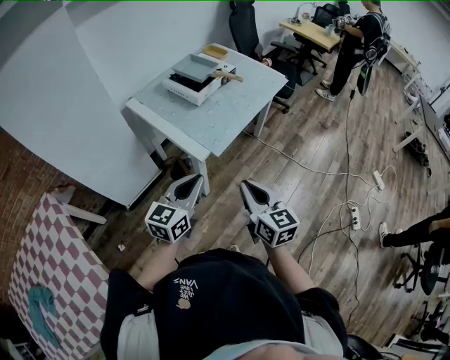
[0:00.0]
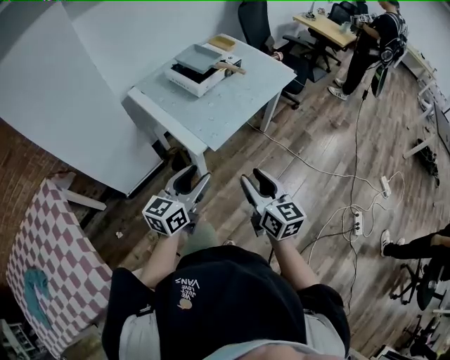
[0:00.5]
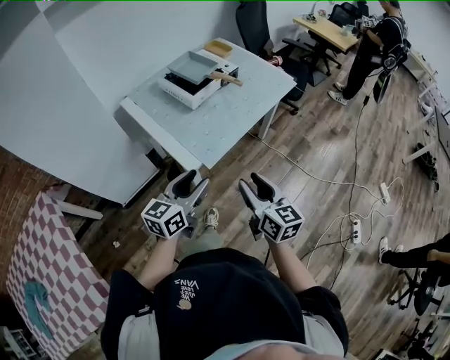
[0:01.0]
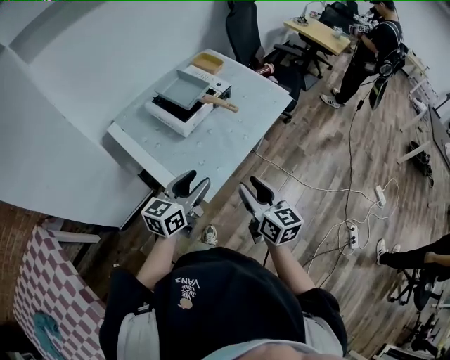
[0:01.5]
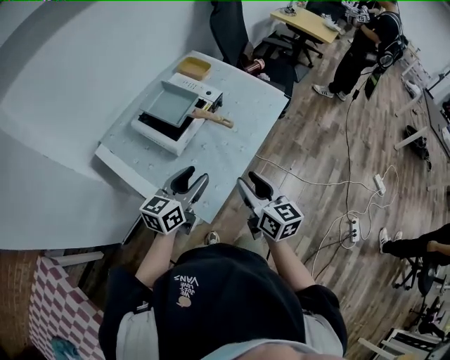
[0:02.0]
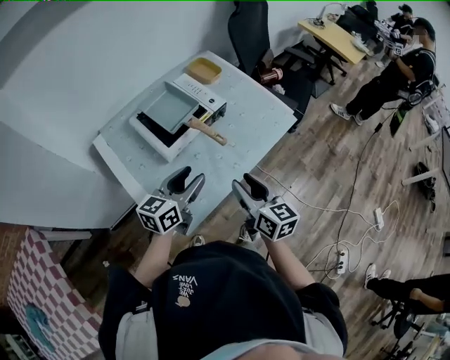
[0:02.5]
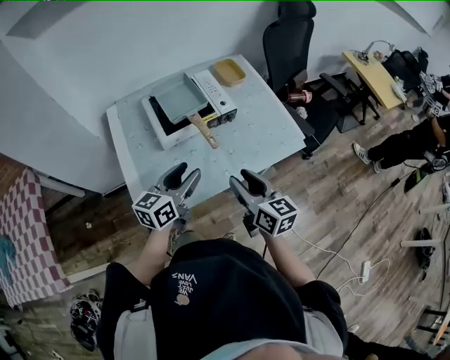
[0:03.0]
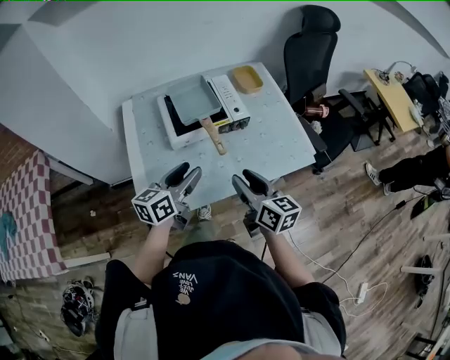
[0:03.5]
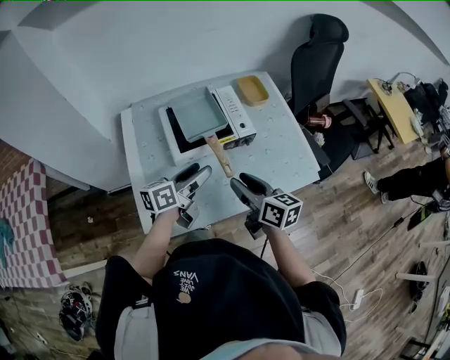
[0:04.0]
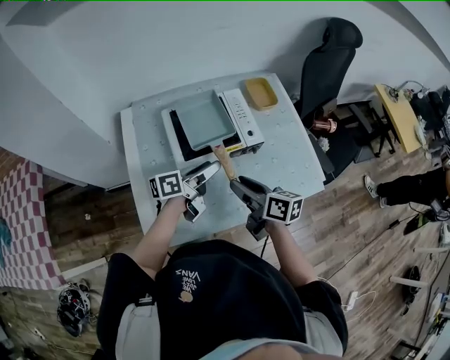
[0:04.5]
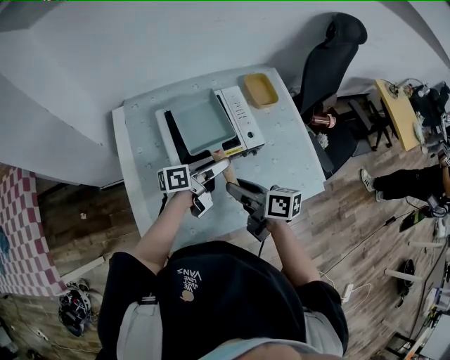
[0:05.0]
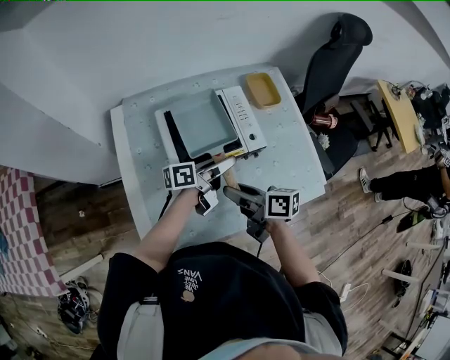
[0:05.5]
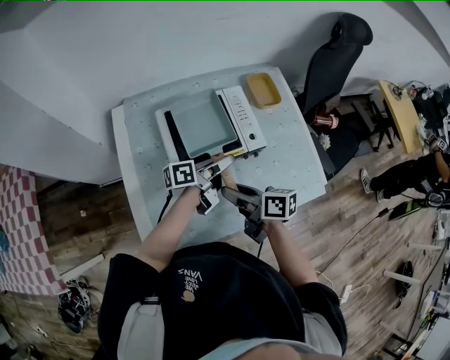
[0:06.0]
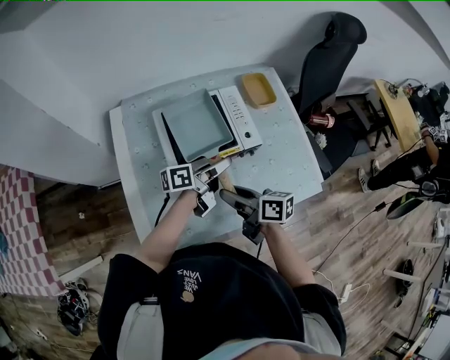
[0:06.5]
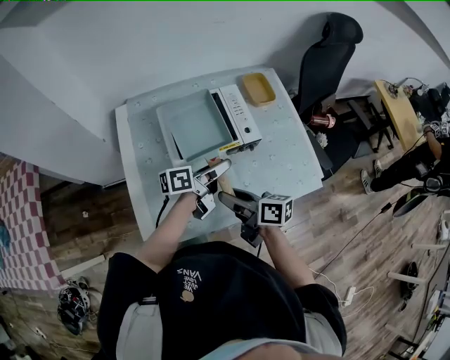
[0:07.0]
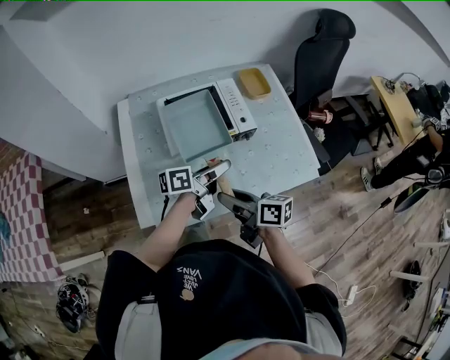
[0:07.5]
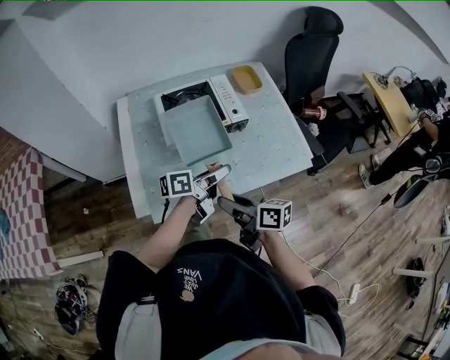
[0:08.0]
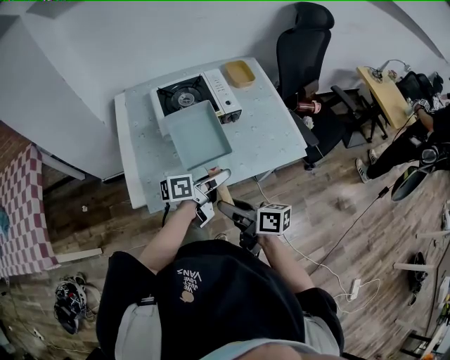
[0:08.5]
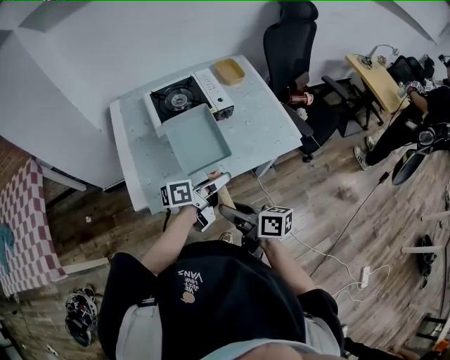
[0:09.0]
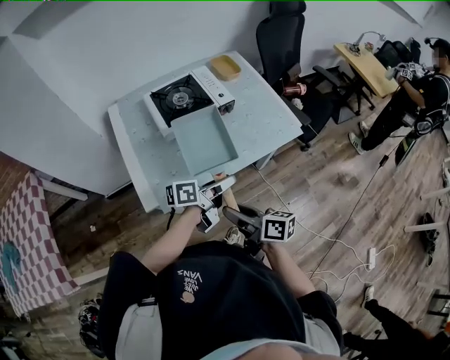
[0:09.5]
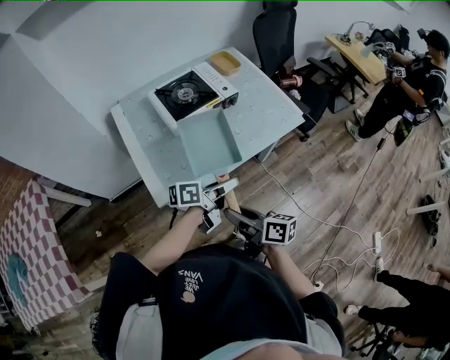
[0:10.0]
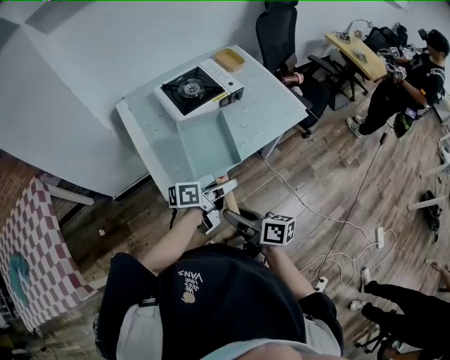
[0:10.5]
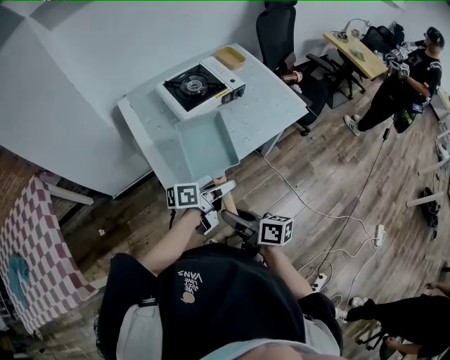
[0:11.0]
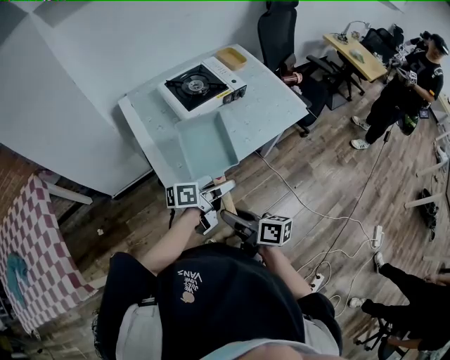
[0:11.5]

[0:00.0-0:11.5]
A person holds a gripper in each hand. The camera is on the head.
0:00.0 to 0:02.0: Both grippers travel together forward, roughly 30 cm. The left gripper opens up. The right gripper opens.
0:02.0 to 0:04.0: The right gripper changes place by some 20 cm, and rotates about 50 degrees. Meanwhile the left gripper changes place by roughly 15 cm, and swivels approximately 40 degrees.
0:04.0 to 0:06.0: The right gripper heads forward and to the left, covering about 10 cm, and swivels about 30 degrees. The left gripper heads forward, downward and to the right, covering some 15 cm, and turns by about 30 degrees.
0:06.0 to 0:07.5: Both grippers travel together backward, some 10 cm.
0:07.5 to 0:09.5: The two grippers go approximately 20 cm backward.
0:09.5 to 0:11.5: The left gripper travels backward and to the left by some 15 cm; the right gripper is displaced to the left and backward by about 15 cm.

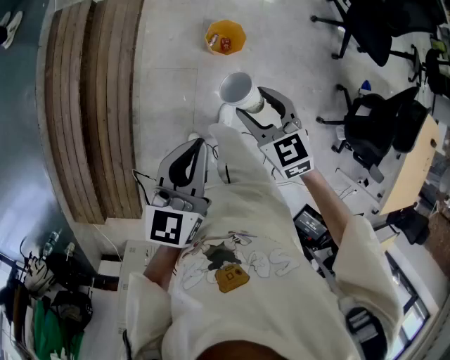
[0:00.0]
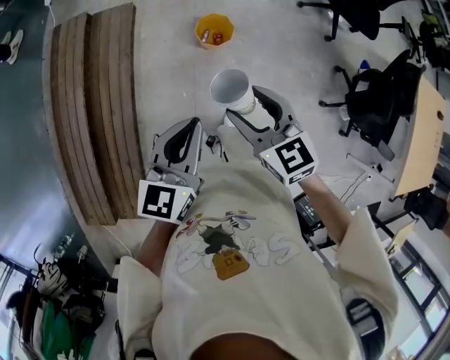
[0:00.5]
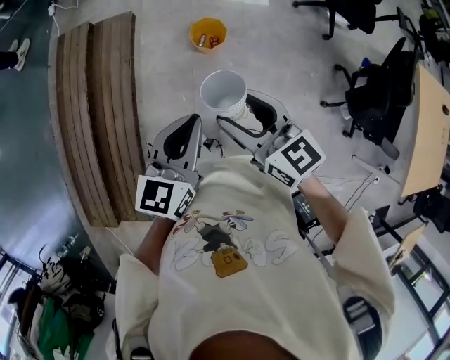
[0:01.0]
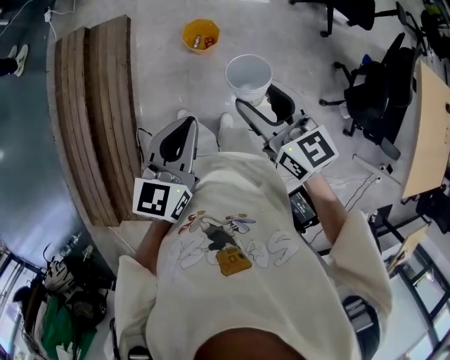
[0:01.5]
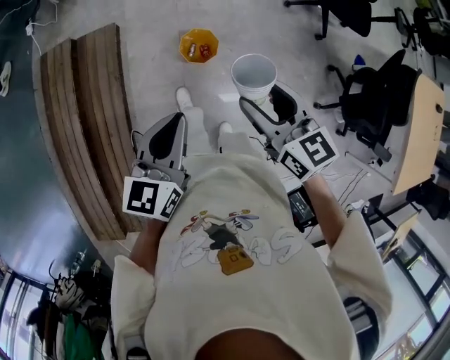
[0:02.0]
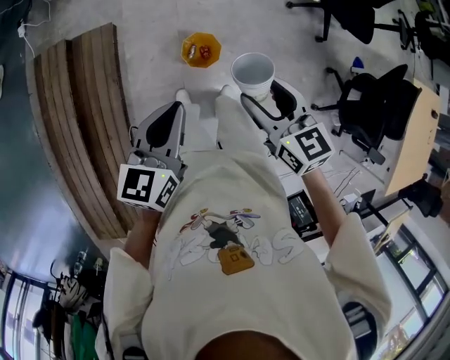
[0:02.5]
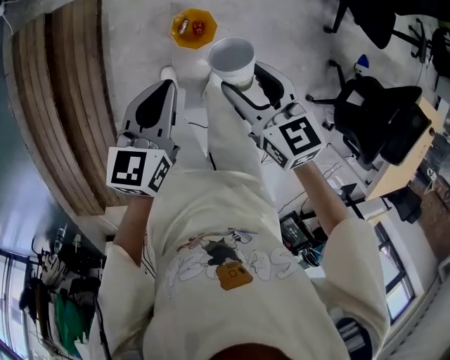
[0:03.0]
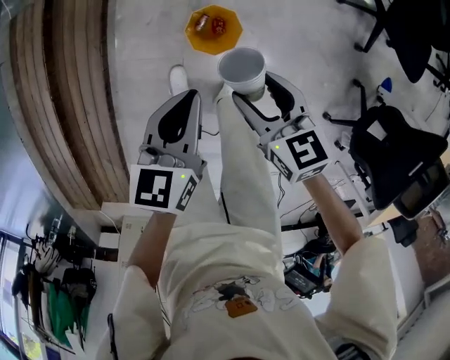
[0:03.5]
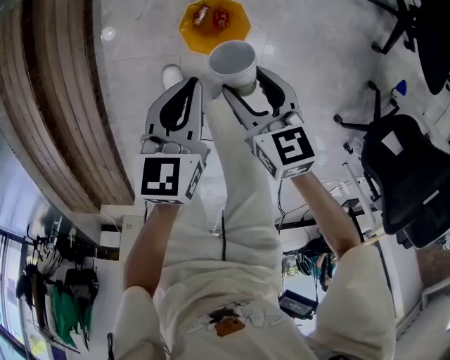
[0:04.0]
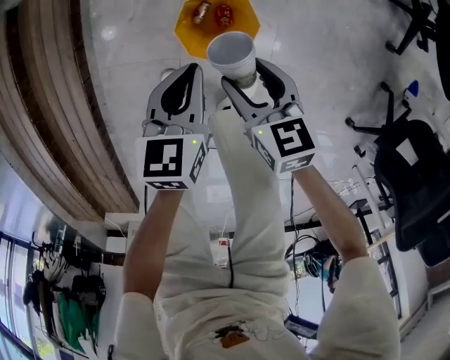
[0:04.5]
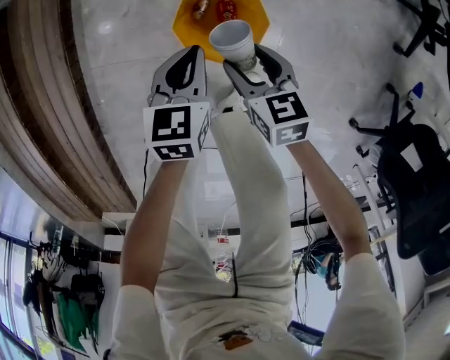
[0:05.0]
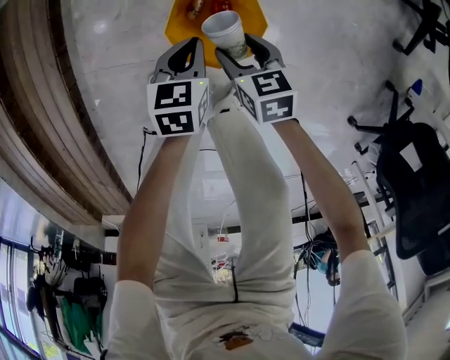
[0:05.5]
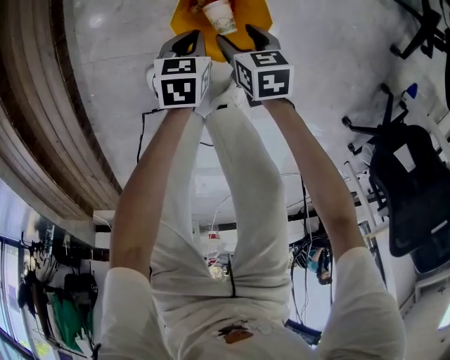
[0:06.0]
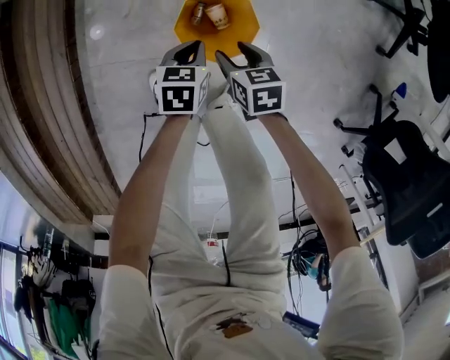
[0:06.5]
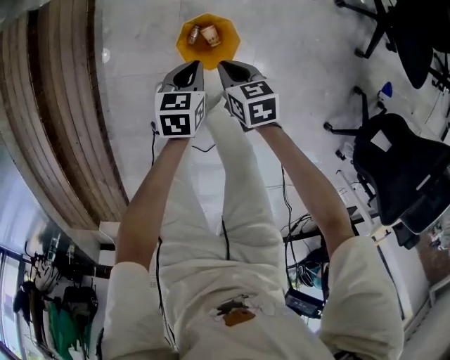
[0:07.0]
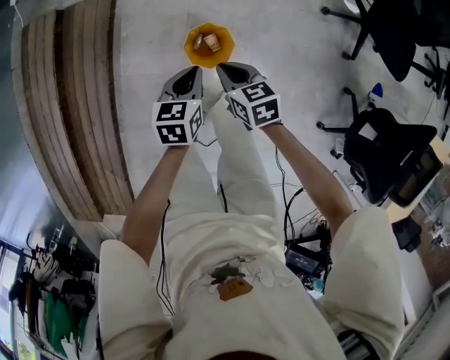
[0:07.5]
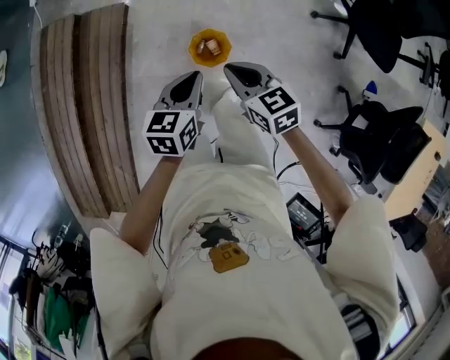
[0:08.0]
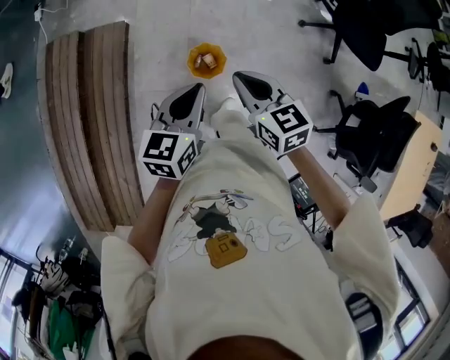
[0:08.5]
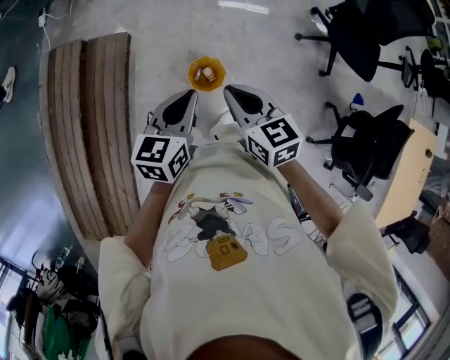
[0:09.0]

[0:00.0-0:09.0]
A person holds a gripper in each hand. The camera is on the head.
0:00.0 to 0:02.0: The left gripper heads to the right and forward, covering some 15 cm; the right gripper shifts some 20 cm to the right and upward, and rotates roughly 30 degrees.
0:02.0 to 0:04.5: The left gripper travels downward and forward by approximately 70 cm, and changes its angle by some 30 degrees. The right gripper travels downward by about 60 cm, and swivels approximately 30 degrees.
0:04.5 to 0:07.0: The left gripper reaches about 25 cm downward, then returns. The right gripper reaches roughly 20 cm downward, then returns, and closes its fingers.
0:07.0 to 0:09.0: The grippers both shift upward by some 50 cm. The left gripper changes its angle by some 20 degrees. Meanwhile the right gripper swivels about 30 degrees.

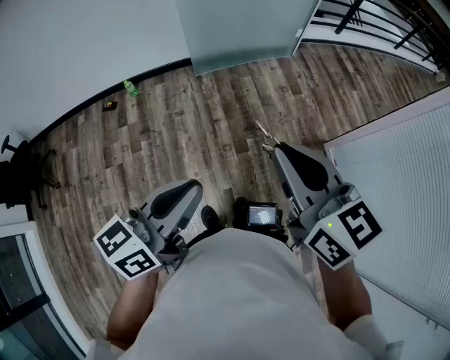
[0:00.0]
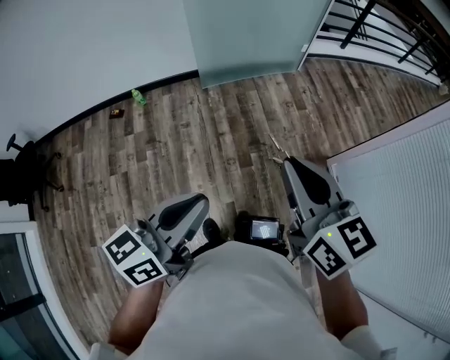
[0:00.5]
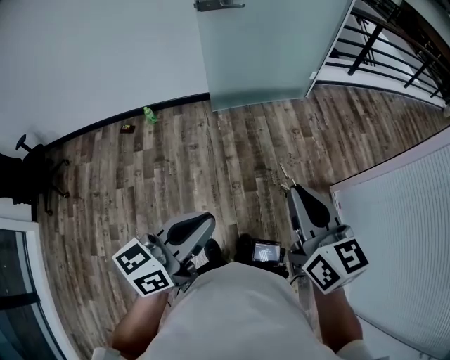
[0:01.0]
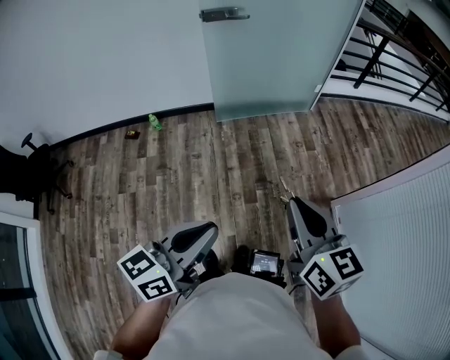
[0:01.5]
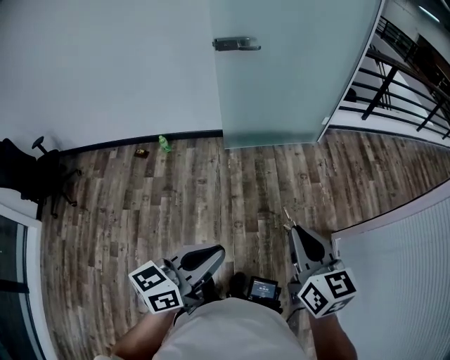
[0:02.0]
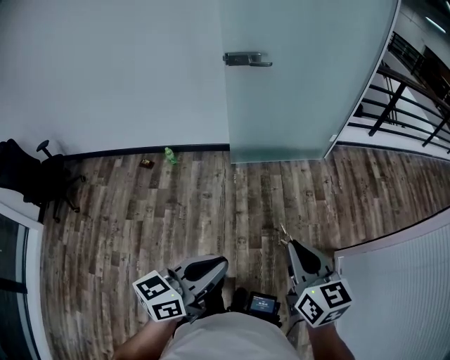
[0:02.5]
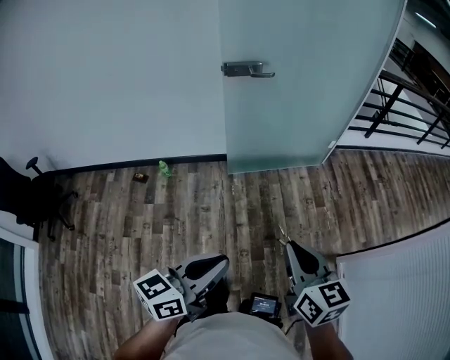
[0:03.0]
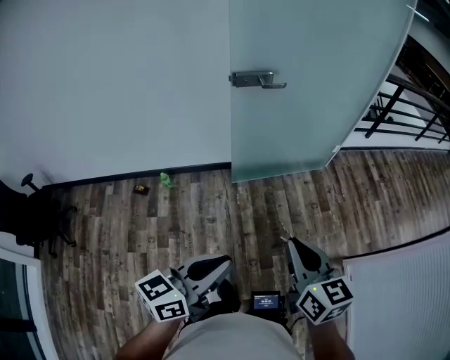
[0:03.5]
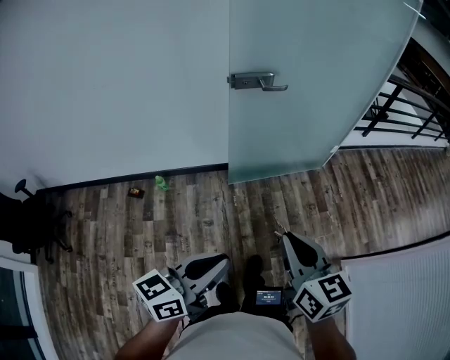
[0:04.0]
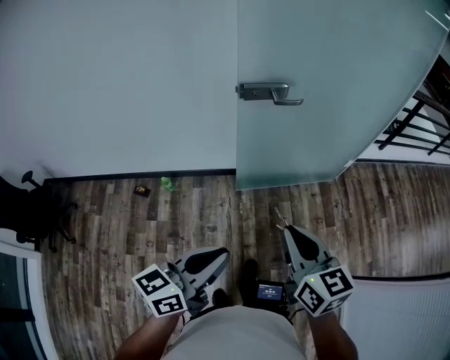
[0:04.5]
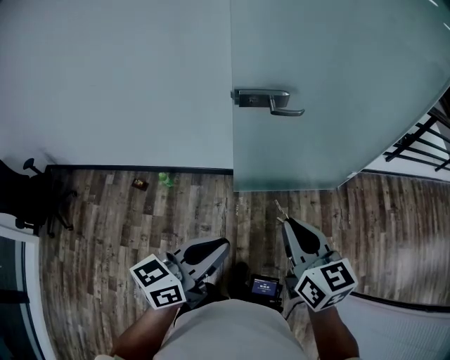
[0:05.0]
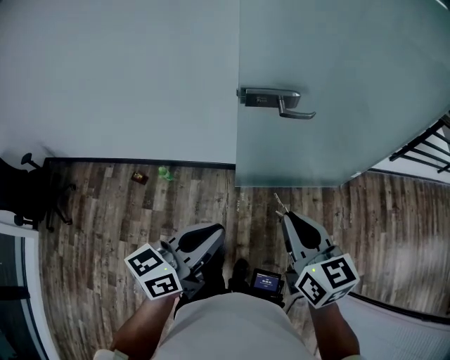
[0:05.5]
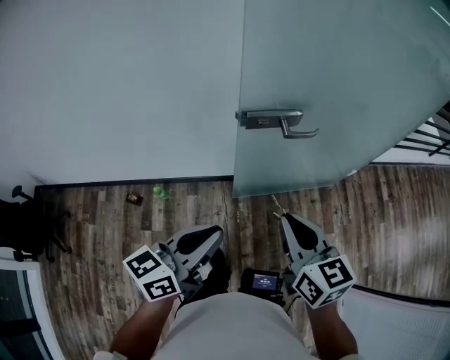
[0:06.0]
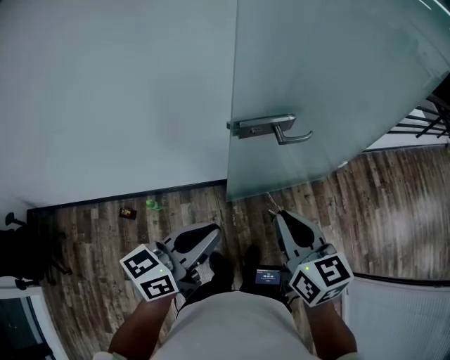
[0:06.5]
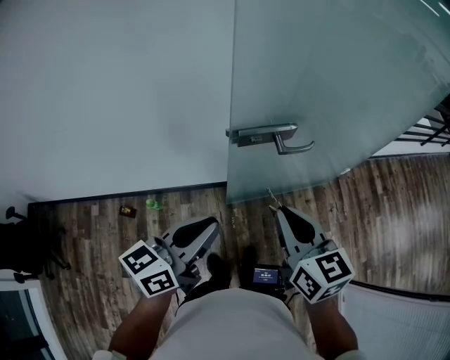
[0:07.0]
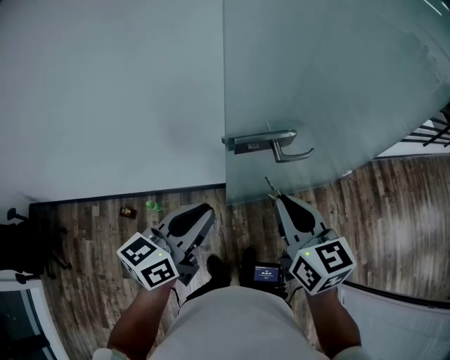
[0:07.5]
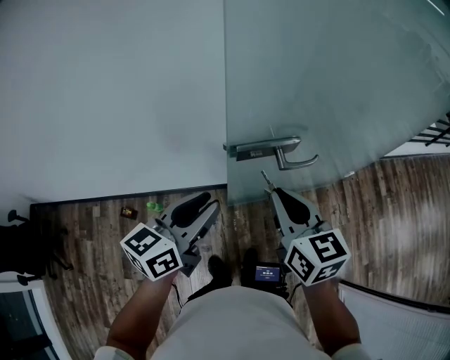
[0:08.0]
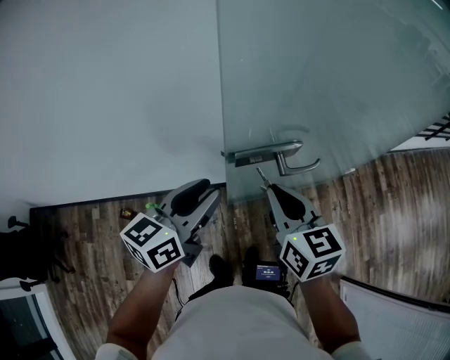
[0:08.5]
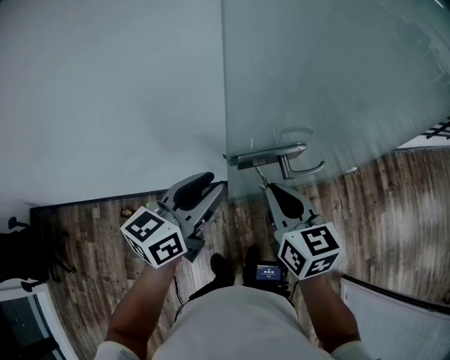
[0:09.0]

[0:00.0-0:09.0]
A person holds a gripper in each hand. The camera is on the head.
0:00.0 to 0:02.0: The right gripper is displaced to the right and forward by some 10 cm. Meanwhile the left gripper travels to the right by roughly 5 cm.
0:02.0 to 0:04.5: The two grippers go approximately 40 cm forward and to the left.
0:04.5 to 0:07.0: Both grippers move forward, some 25 cm.
0:07.0 to 0:09.0: The two grippers go some 15 cm forward. The left gripper opens.
